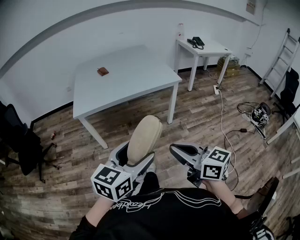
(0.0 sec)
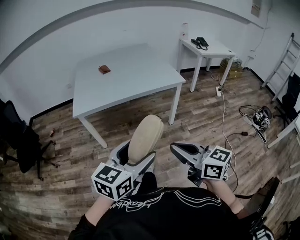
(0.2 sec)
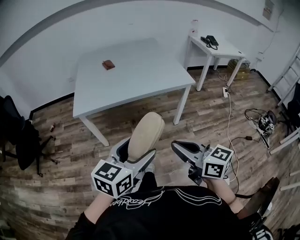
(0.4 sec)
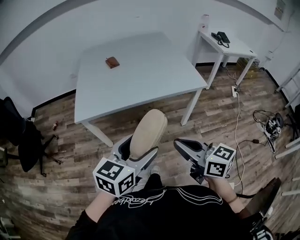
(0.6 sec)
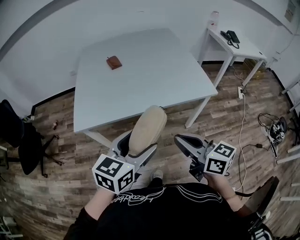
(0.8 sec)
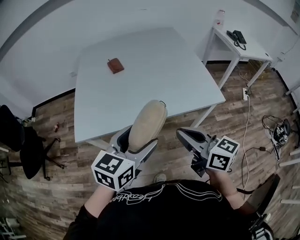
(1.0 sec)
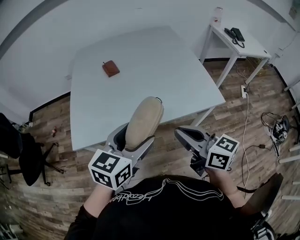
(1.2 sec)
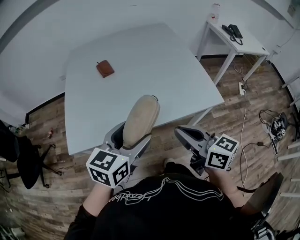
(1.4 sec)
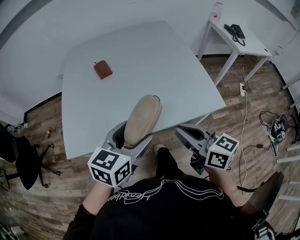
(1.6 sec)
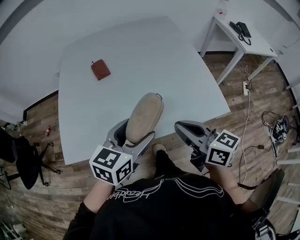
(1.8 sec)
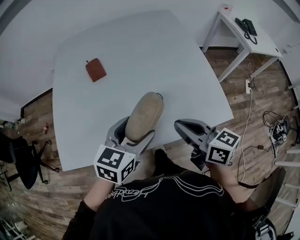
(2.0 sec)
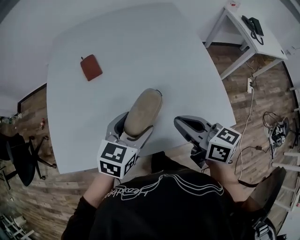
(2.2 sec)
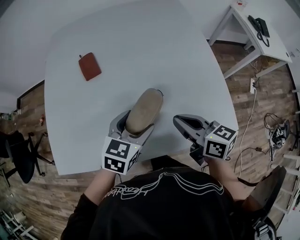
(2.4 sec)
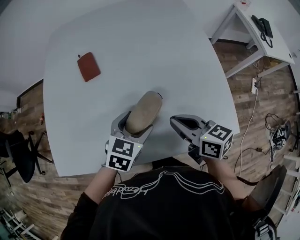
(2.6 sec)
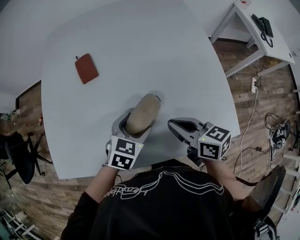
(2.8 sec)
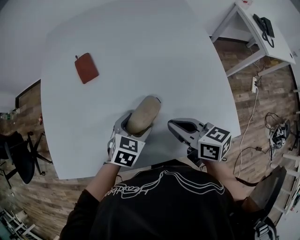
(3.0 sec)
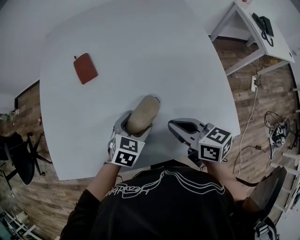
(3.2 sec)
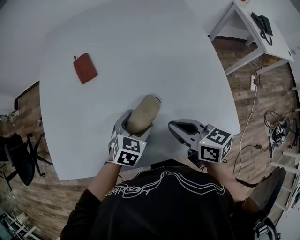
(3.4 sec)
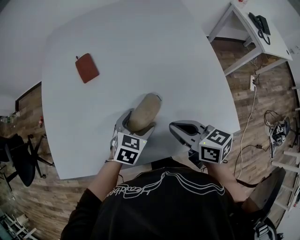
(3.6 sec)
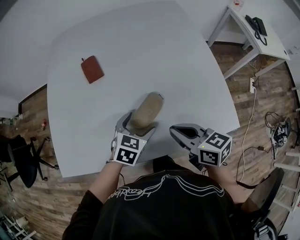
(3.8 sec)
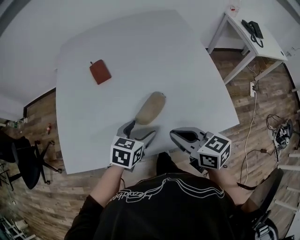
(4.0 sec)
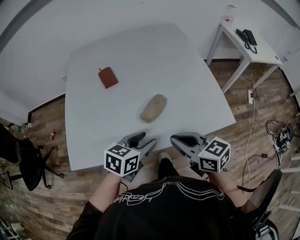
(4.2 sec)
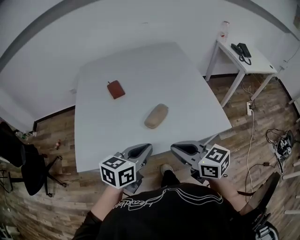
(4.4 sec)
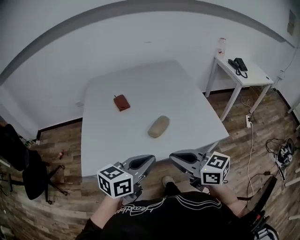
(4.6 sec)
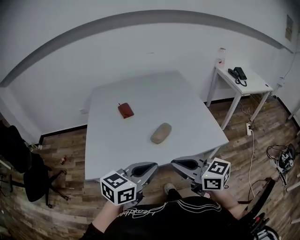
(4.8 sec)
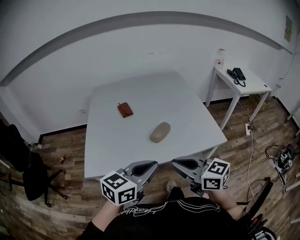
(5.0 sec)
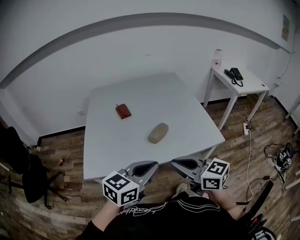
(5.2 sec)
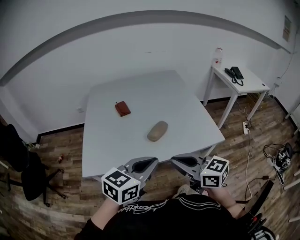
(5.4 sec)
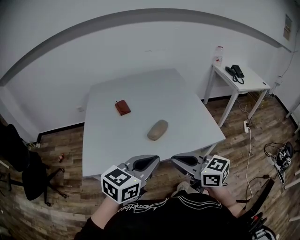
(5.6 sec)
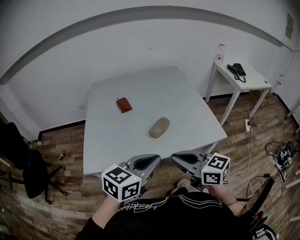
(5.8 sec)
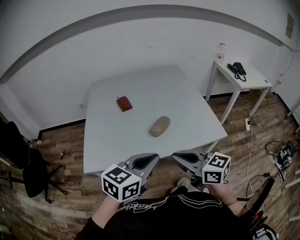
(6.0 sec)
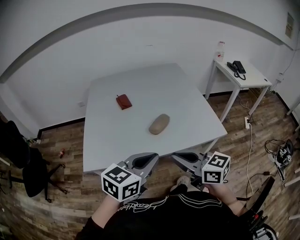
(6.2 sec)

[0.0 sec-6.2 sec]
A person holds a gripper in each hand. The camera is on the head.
0.0 sec to 1.6 sec: The pair of grippers is taken forward, about 50 cm.
1.6 sec to 3.2 sec: The left gripper goes some 30 cm downward and forward, and turns by some 30 degrees. The right gripper travels forward and downward by approximately 25 cm.
3.2 sec to 4.6 sec: The right gripper travels backward and upward by roughly 30 cm, and swivels roughly 20 degrees. Meanwhile the left gripper goes some 35 cm upward and backward, tilts its fingers roughly 30 degrees upward, and closes.
4.6 sec to 6.2 sec: The grippers make only small movements.

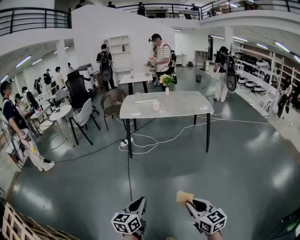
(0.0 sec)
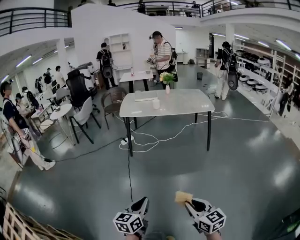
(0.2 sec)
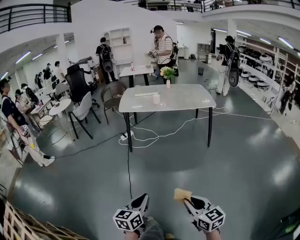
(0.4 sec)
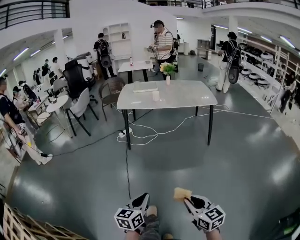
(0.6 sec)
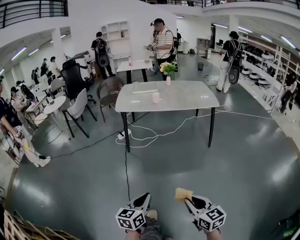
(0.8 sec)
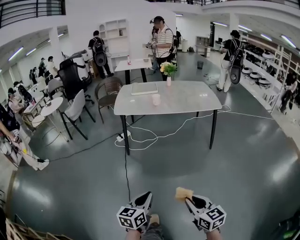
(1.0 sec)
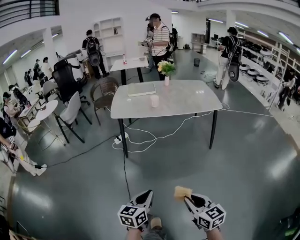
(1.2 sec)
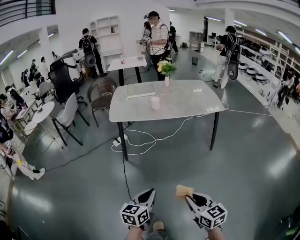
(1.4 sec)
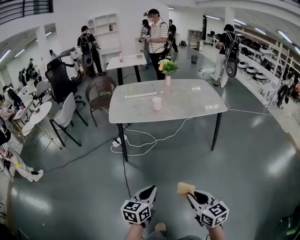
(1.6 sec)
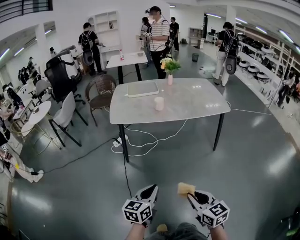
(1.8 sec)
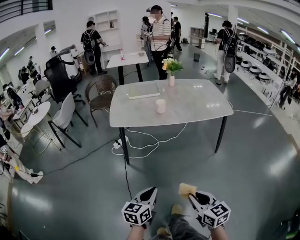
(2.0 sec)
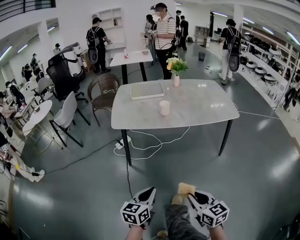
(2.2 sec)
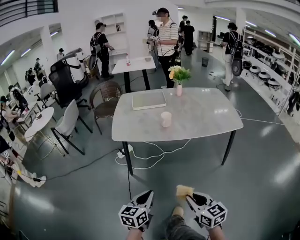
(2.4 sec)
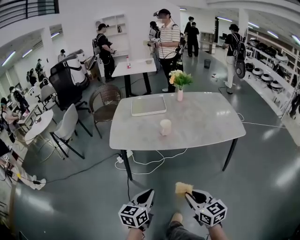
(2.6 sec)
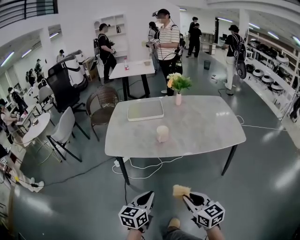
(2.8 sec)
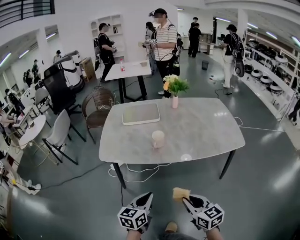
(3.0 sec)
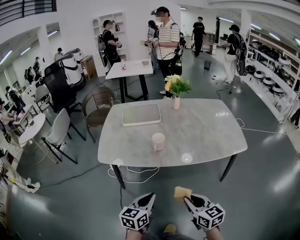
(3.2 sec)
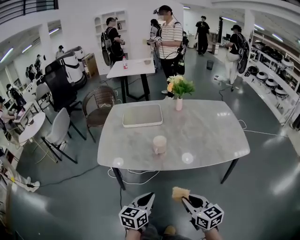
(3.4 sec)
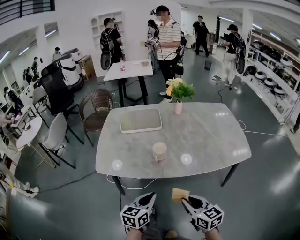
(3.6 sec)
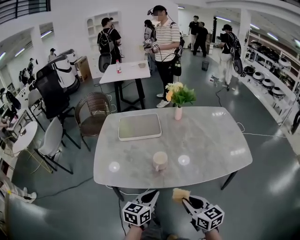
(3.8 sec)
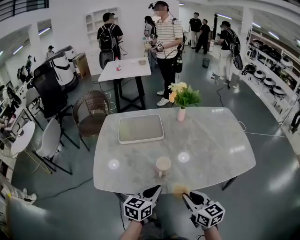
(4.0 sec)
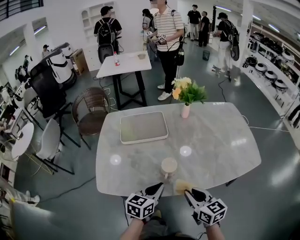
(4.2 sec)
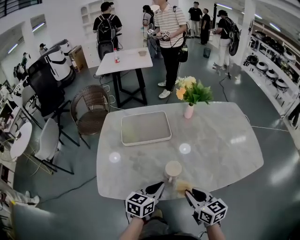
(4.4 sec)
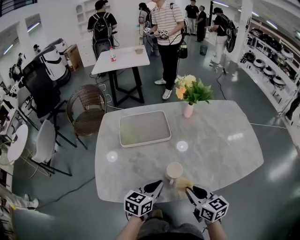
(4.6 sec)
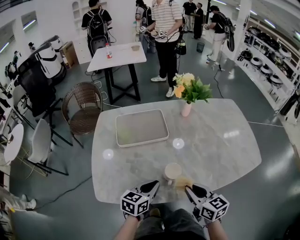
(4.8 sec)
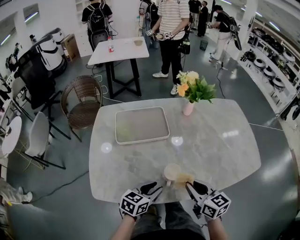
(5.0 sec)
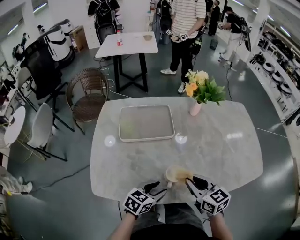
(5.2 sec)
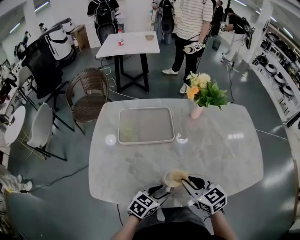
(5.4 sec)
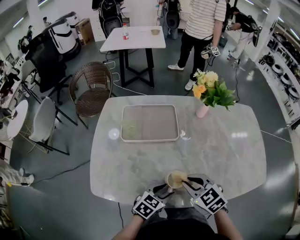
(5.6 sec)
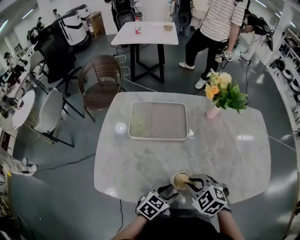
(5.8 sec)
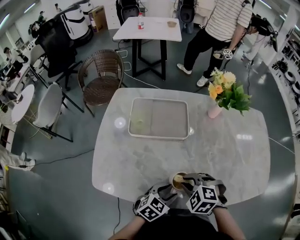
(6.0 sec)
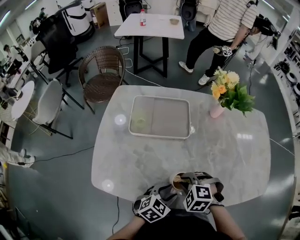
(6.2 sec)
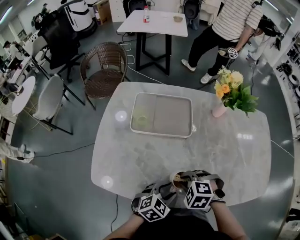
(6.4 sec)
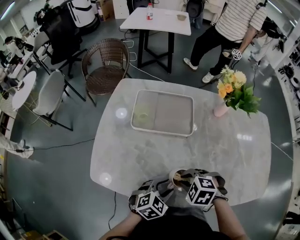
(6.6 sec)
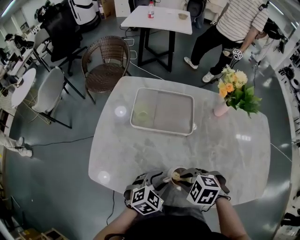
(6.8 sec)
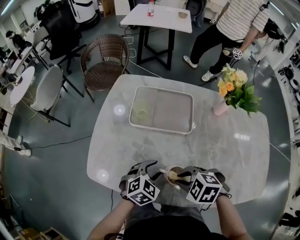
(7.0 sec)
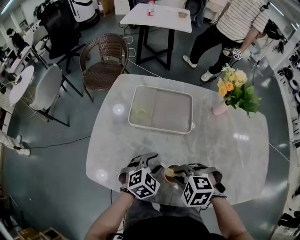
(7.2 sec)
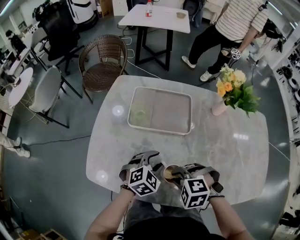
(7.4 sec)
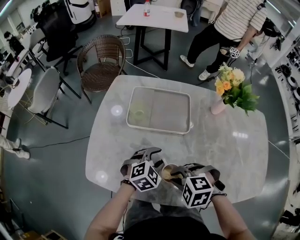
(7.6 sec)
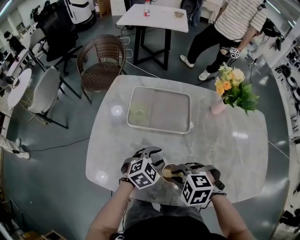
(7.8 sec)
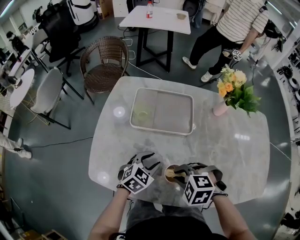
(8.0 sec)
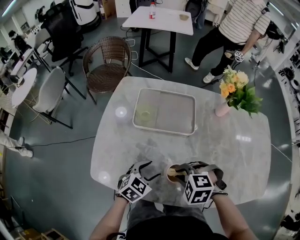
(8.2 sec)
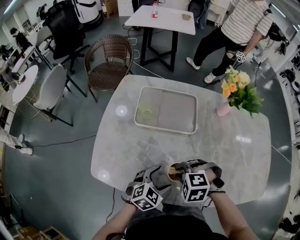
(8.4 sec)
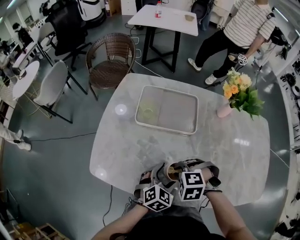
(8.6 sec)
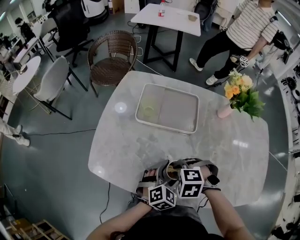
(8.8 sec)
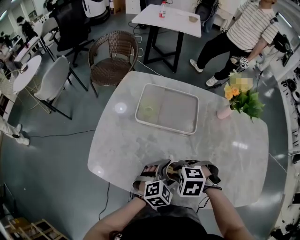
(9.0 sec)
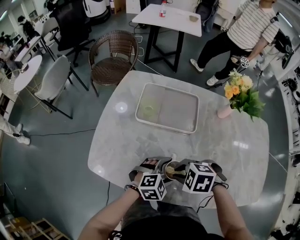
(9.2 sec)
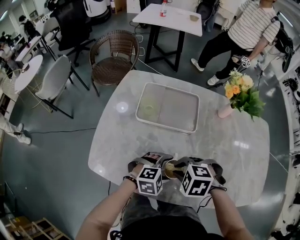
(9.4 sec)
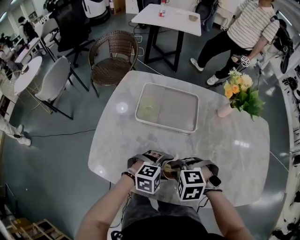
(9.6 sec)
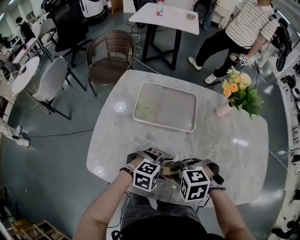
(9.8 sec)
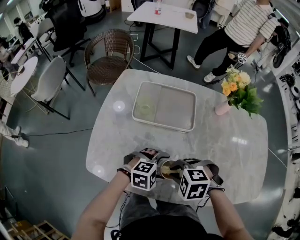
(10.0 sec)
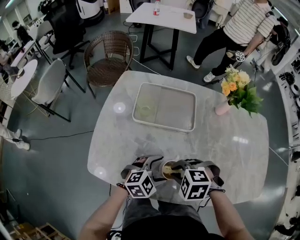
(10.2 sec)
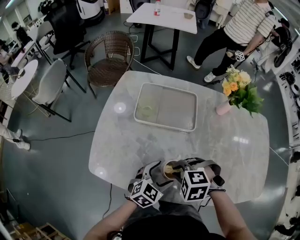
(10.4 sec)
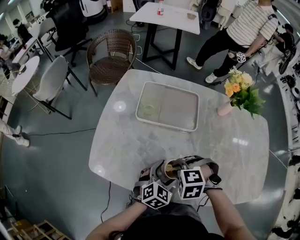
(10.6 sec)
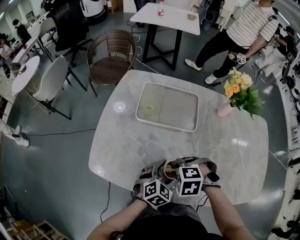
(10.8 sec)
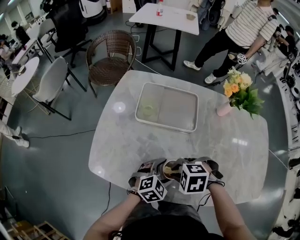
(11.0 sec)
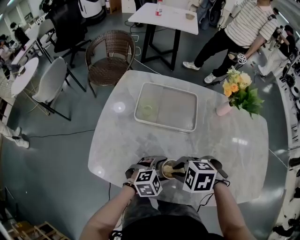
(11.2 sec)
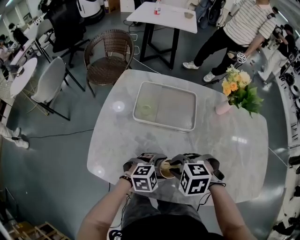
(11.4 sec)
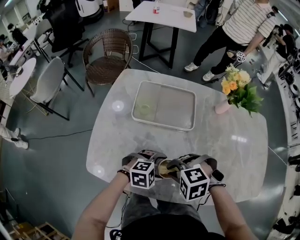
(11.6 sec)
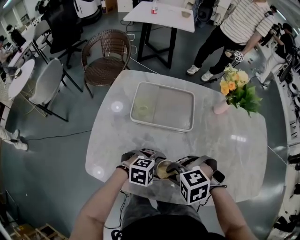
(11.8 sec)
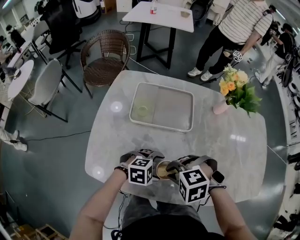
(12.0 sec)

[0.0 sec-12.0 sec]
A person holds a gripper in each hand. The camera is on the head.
0.0 sec to 1.6 sec: Both grippers move forward, roughly 35 cm.
1.6 sec to 3.0 sec: Both grippers travel together forward, some 35 cm.
3.0 sec to 4.4 sec: The grippers both shift forward by some 30 cm.
4.4 sec to 6.0 sec: The right gripper travels forward, downward and to the left by roughly 15 cm, and points its fingers about 40 degrees further downward. The left gripper shifts approximately 10 cm downward, rotates some 20 degrees, and opens up.
6.0 sec to 7.6 sec: The left gripper shifts by roughly 15 cm, and turns by approximately 20 degrees. Meanwhile the right gripper rotates roughly 20 degrees.
7.6 sec to 9.0 sec: The left gripper moves approximately 10 cm, and opens up.
10.4 sec to 12.0 sec: The left gripper turns by roughly 50 degrees.

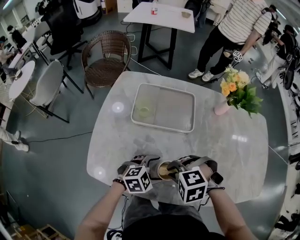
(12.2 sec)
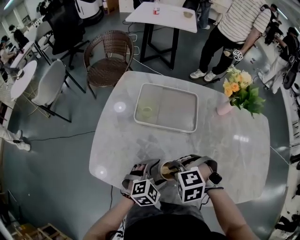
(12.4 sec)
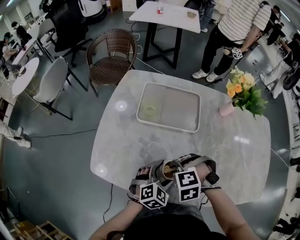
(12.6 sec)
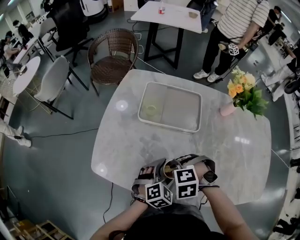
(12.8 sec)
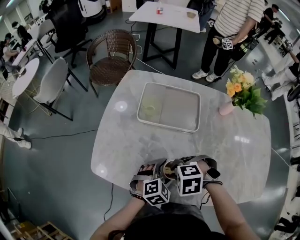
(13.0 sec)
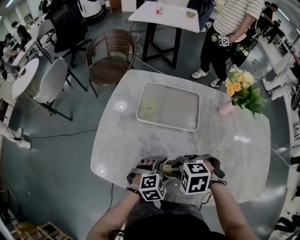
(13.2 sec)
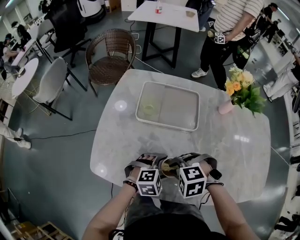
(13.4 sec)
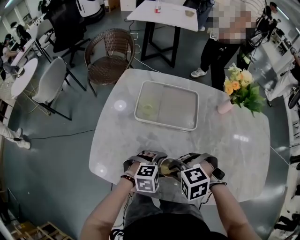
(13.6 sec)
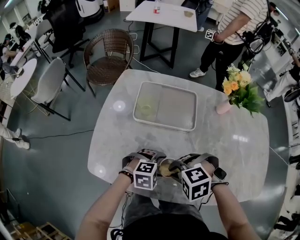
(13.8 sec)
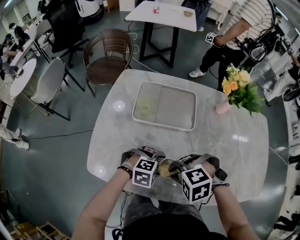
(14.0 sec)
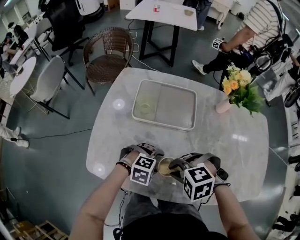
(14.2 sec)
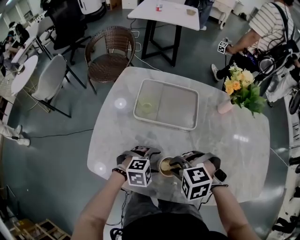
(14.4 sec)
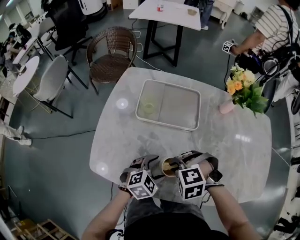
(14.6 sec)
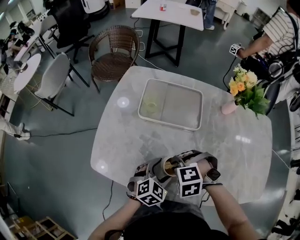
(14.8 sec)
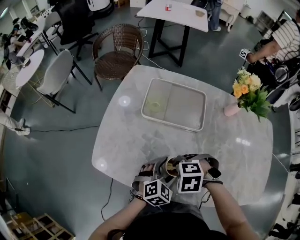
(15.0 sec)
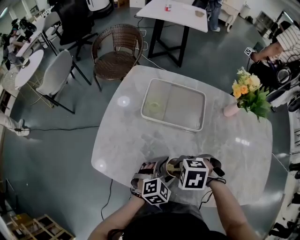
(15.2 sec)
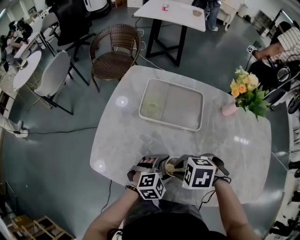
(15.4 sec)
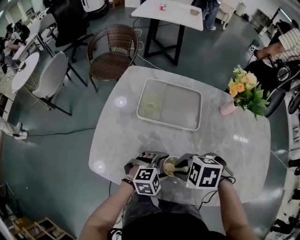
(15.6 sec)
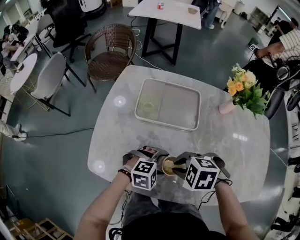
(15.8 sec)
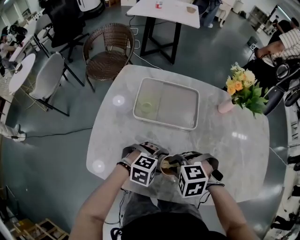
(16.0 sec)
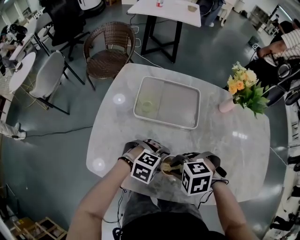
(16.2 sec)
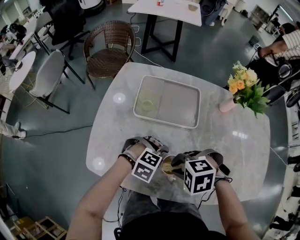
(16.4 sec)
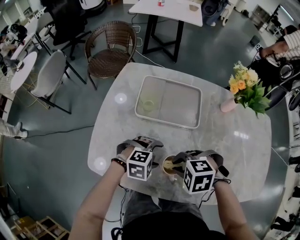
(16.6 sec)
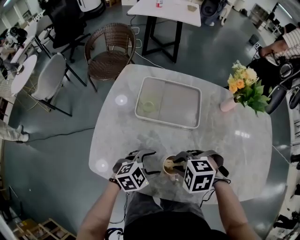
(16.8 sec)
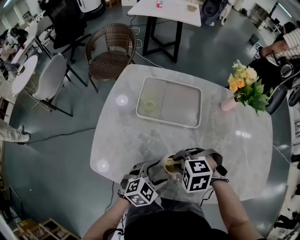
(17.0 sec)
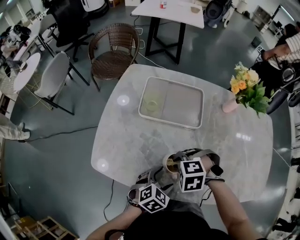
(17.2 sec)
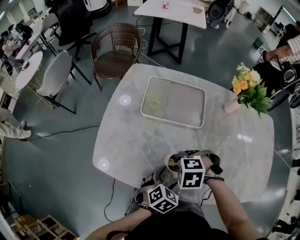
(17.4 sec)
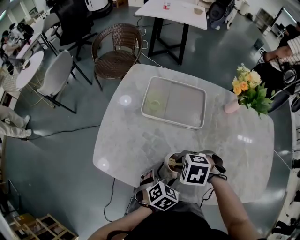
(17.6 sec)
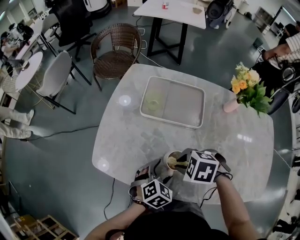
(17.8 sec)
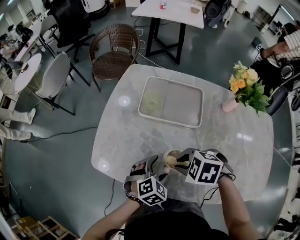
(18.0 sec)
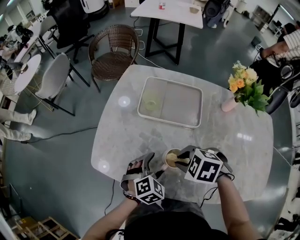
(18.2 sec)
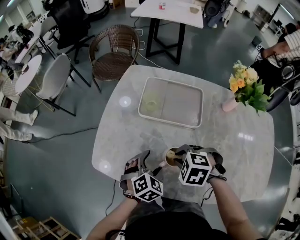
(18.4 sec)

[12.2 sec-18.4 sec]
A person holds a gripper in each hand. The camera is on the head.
13.8 sec to 15.4 sec: The right gripper swivels roughly 20 degrees. The left gripper swivels approximately 20 degrees.
15.4 sec to 16.8 sec: The left gripper moves about 5 cm.
16.8 sec to 18.4 sec: The left gripper turns by about 30 degrees.
